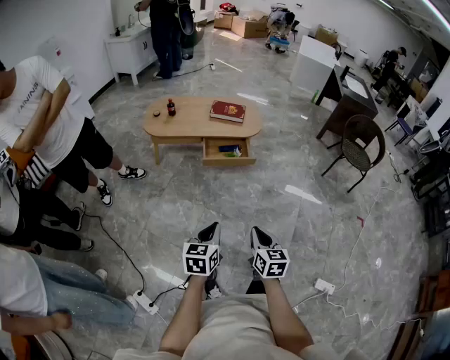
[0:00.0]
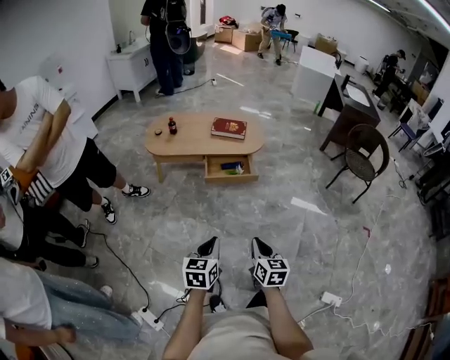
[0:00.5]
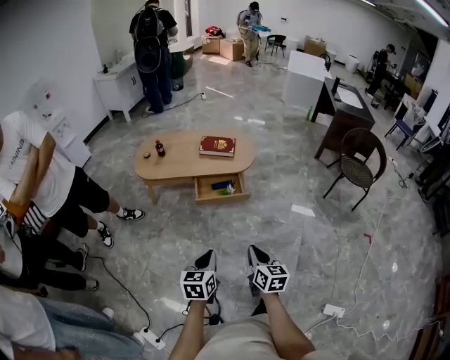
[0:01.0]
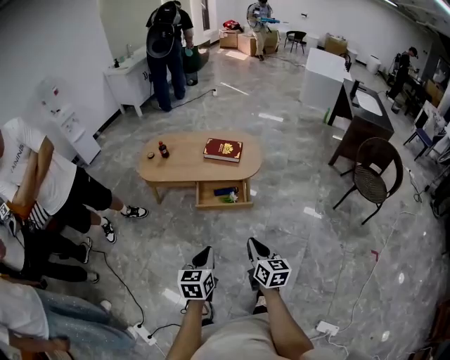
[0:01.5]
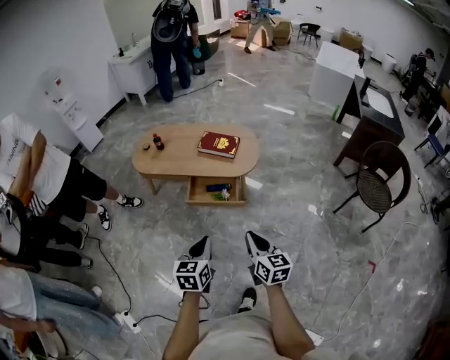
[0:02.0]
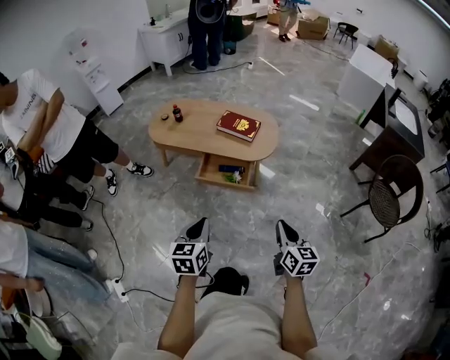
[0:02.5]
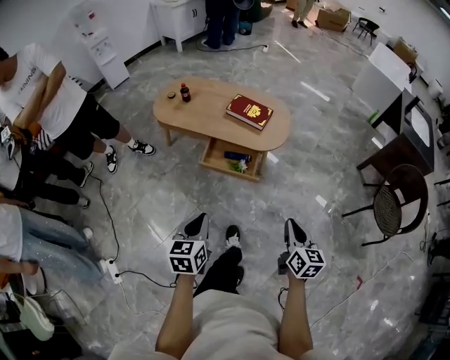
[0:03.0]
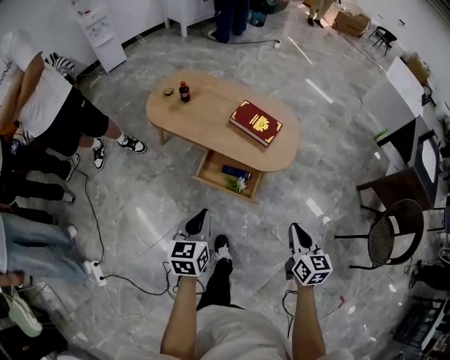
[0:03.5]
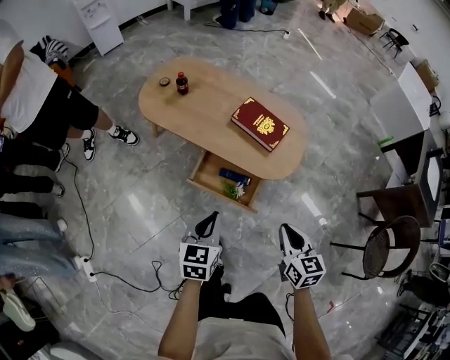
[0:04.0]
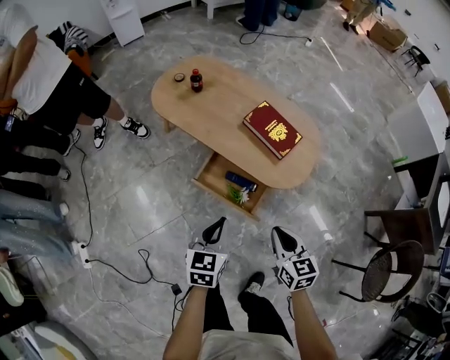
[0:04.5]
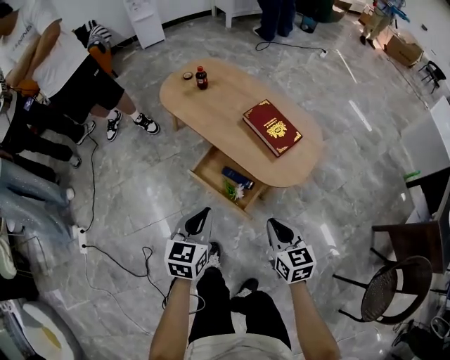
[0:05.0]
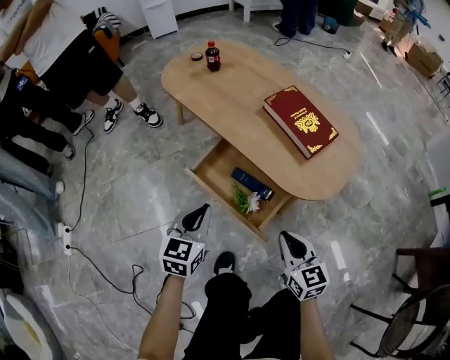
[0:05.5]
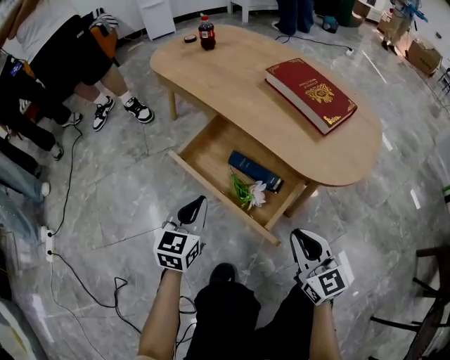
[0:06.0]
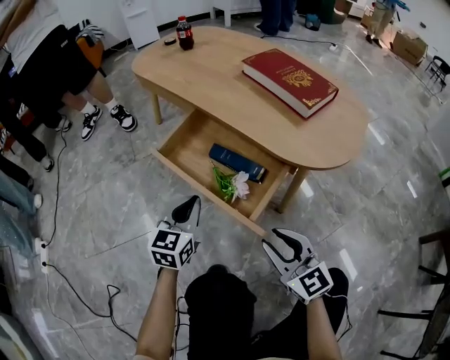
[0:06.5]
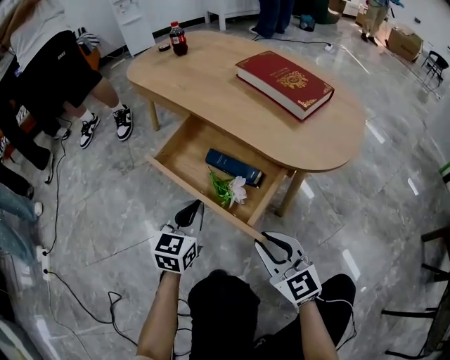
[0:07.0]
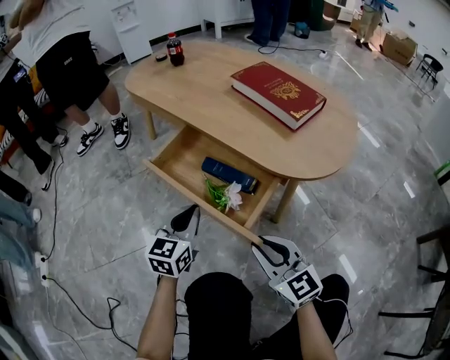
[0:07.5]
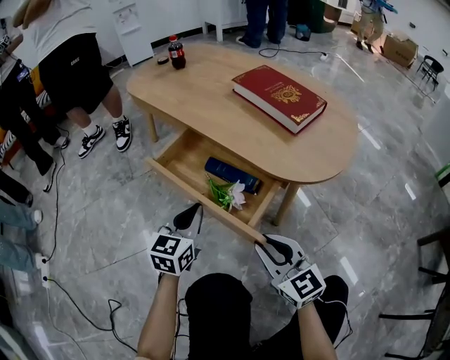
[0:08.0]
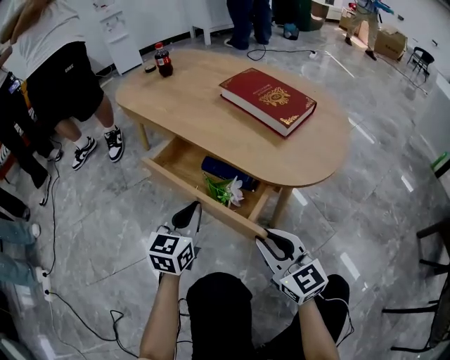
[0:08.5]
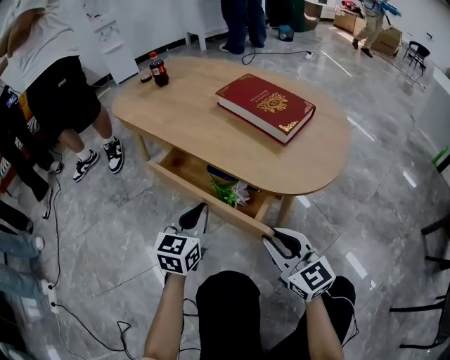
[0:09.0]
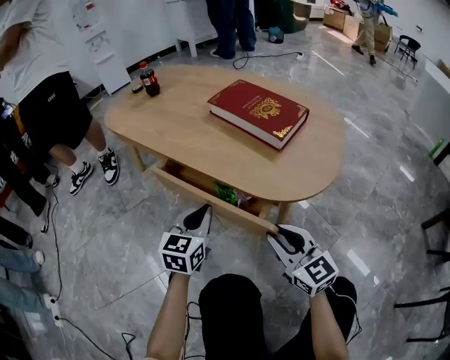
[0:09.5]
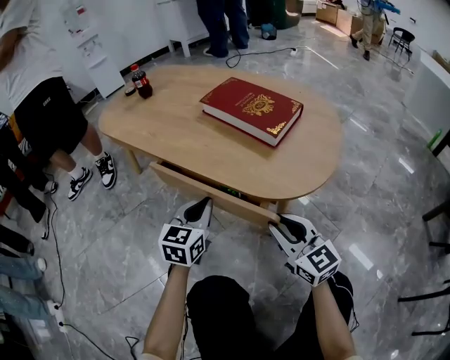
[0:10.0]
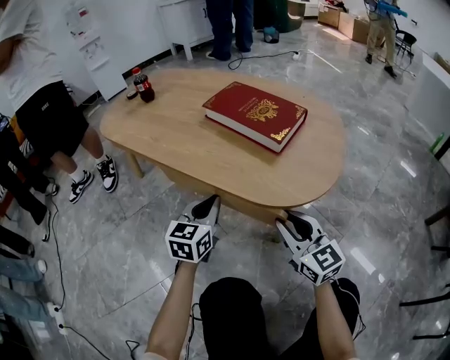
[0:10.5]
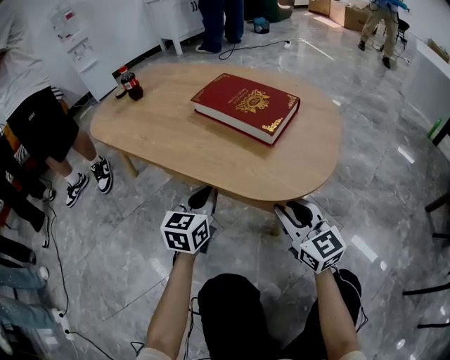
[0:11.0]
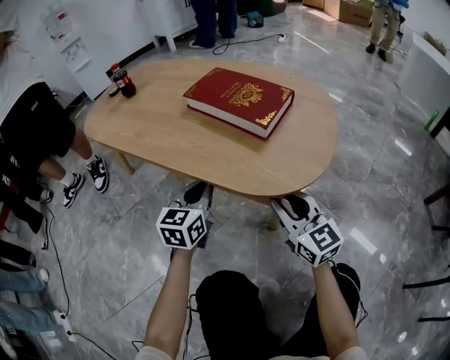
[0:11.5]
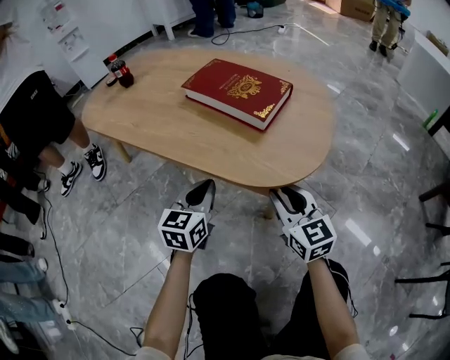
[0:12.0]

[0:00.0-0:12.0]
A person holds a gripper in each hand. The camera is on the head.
0:00.0 to 0:02.0: The grippers both shift forward and to the right by about 35 cm. The right gripper changes its angle by some 20 degrees.
0:02.0 to 0:04.0: The left gripper shifts approximately 30 cm forward and downward, while the right gripper goes some 30 cm forward, and swivels approximately 30 degrees.
0:04.0 to 0:06.0: The two grippers go roughly 40 cm downward. The right gripper rotates about 40 degrees. The left gripper turns by approximately 20 degrees.
0:08.0 to 0:10.0: Both grippers travel together forward and to the right, approximately 15 cm.
0:10.0 to 0:12.0: The right gripper shifts by approximately 5 cm.

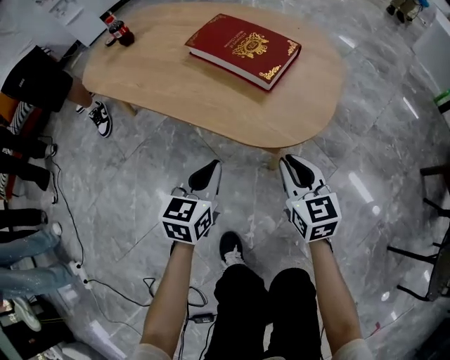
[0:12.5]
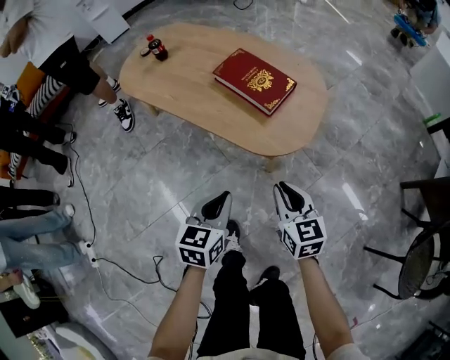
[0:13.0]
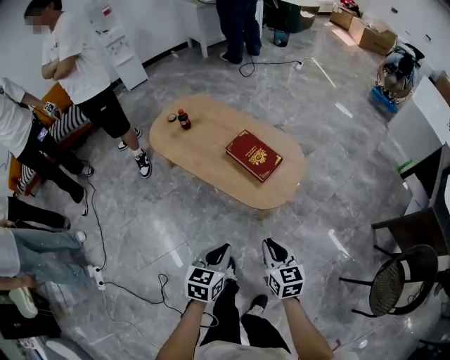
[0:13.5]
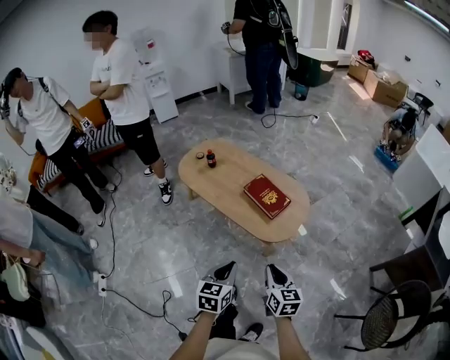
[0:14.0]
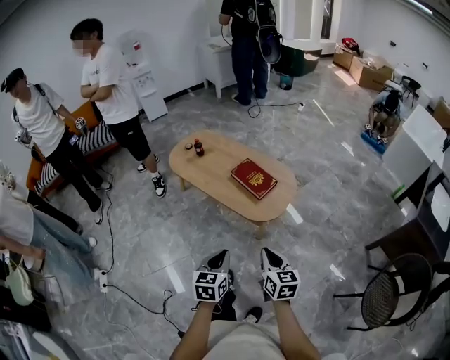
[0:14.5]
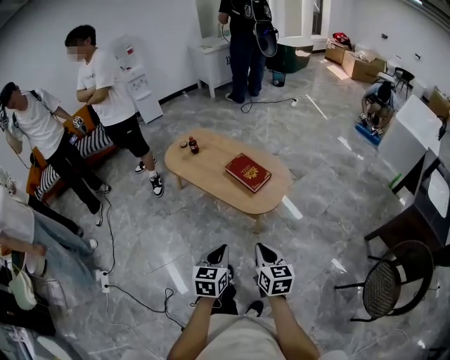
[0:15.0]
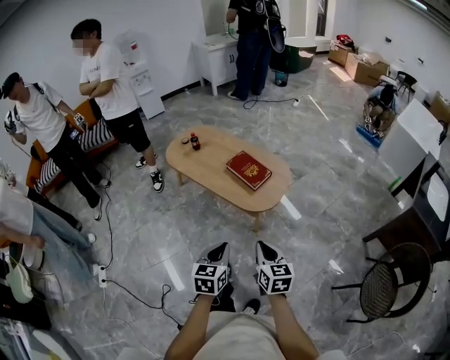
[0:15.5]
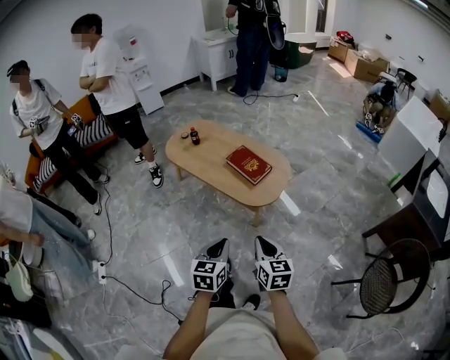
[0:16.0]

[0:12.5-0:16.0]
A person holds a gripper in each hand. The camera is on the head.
0:12.5 to 0:14.5: The grippers both shift upward and backward by some 50 cm.
0:14.5 to 0:16.0: The grippers stay close to where they were, moving slightly.

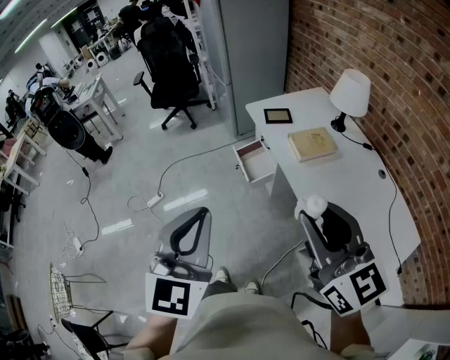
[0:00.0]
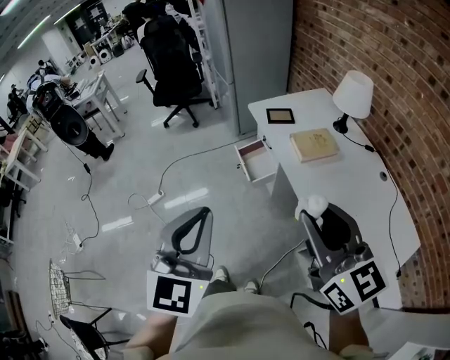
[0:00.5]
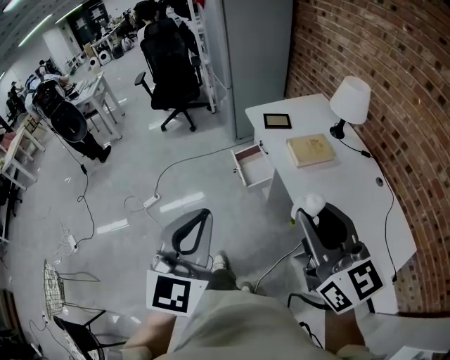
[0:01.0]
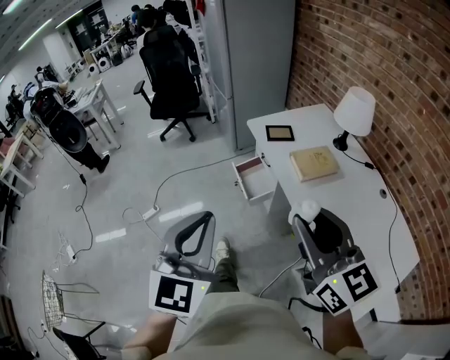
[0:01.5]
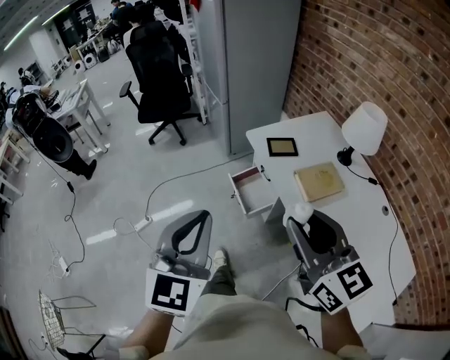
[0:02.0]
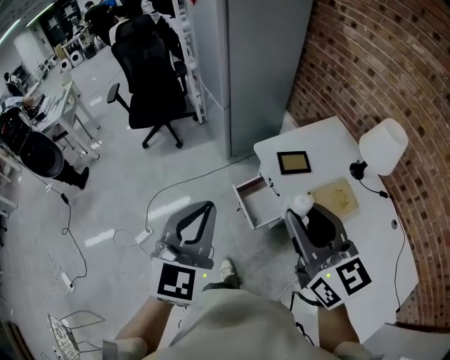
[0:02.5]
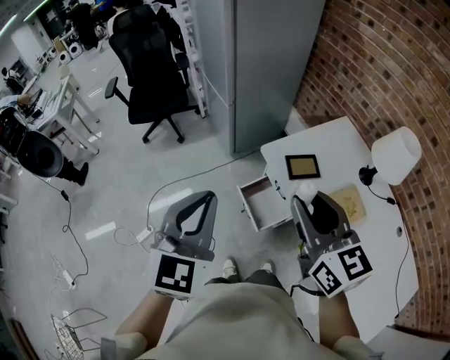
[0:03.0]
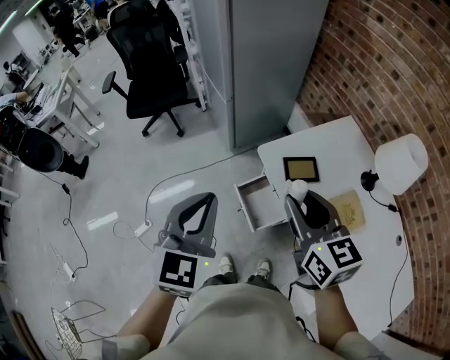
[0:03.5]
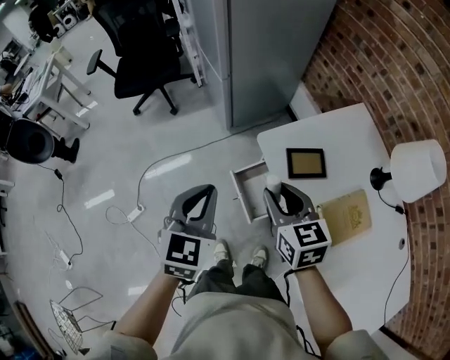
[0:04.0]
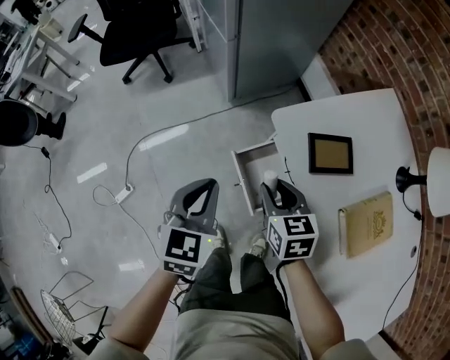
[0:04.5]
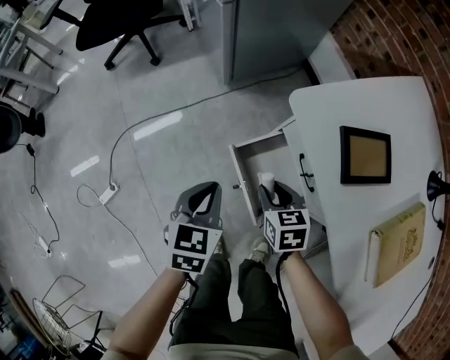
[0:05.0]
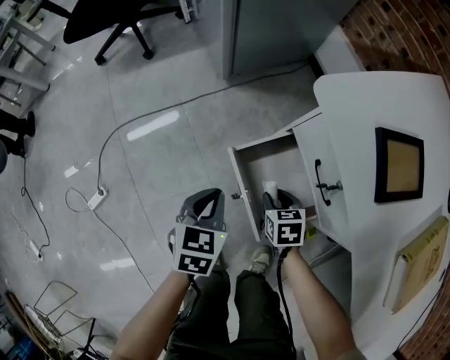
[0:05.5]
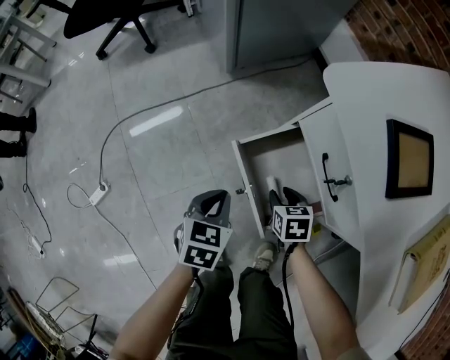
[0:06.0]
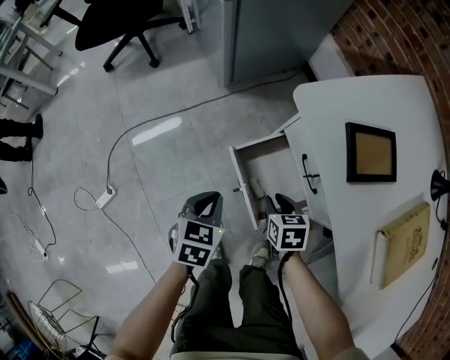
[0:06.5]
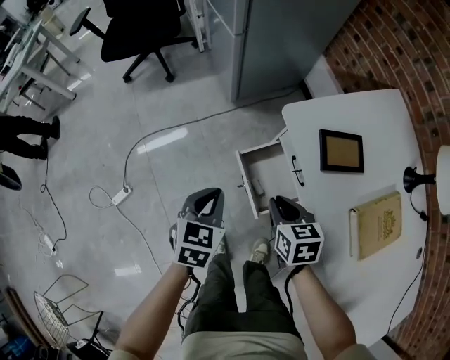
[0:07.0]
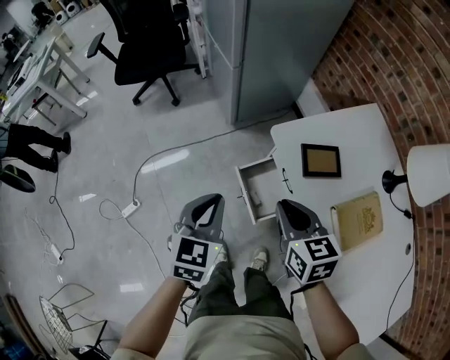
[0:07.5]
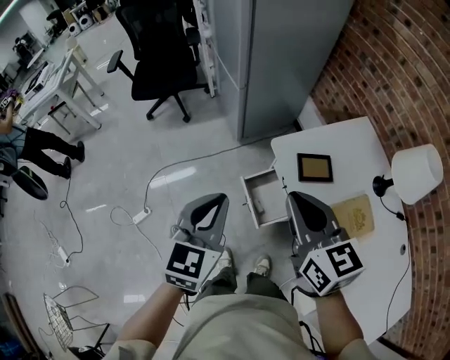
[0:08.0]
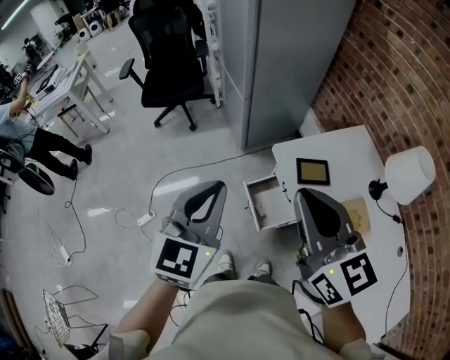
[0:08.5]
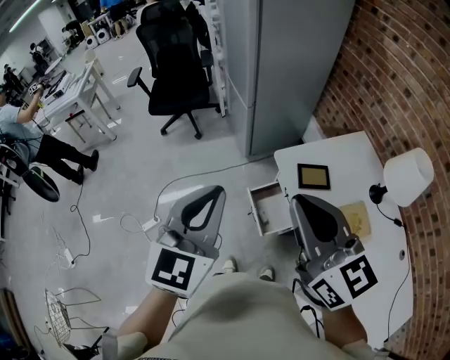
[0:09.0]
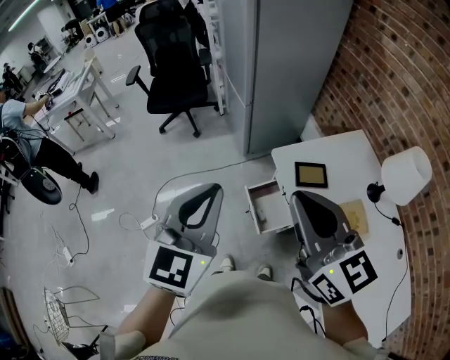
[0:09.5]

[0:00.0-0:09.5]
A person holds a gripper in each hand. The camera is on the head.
0:00.0 to 0:02.0: Both grippers travel together forward, some 20 cm.
0:02.0 to 0:04.0: The grippers both shift forward and downward by approximately 40 cm. The right gripper swivels some 30 degrees.
0:04.0 to 0:05.5: The two grippers go approximately 50 cm downward. The left gripper rotates about 20 degrees. Meanwhile the right gripper tilts its fingers roughly 30 degrees downward.
0:05.5 to 0:07.5: Both grippers move upward, roughly 40 cm. The right gripper turns by some 30 degrees, and closes up.
0:07.5 to 0:09.5: The two grippers go roughly 30 cm upward. The left gripper changes its angle by roughly 20 degrees; the right gripper tilts its fingers some 30 degrees upward.

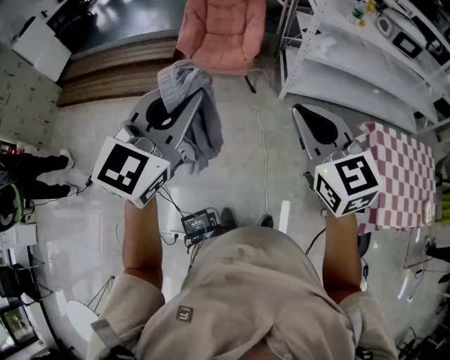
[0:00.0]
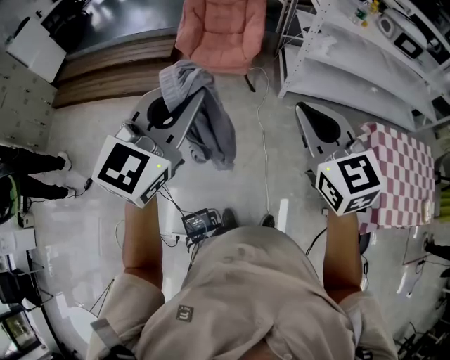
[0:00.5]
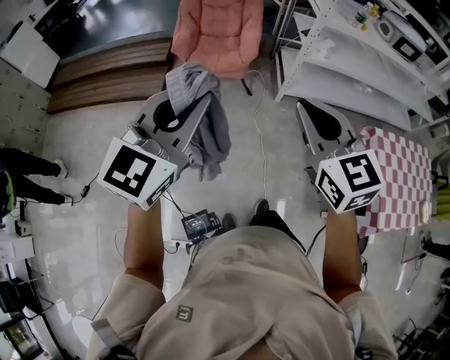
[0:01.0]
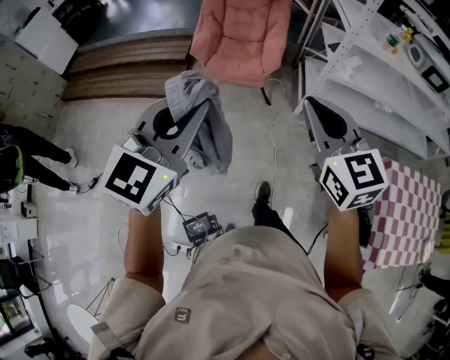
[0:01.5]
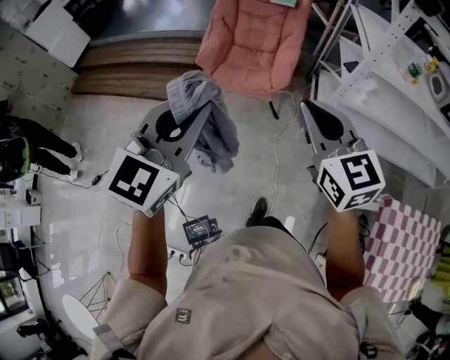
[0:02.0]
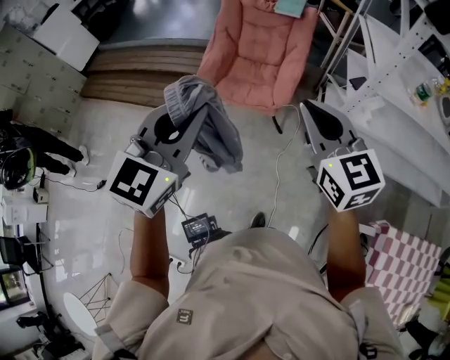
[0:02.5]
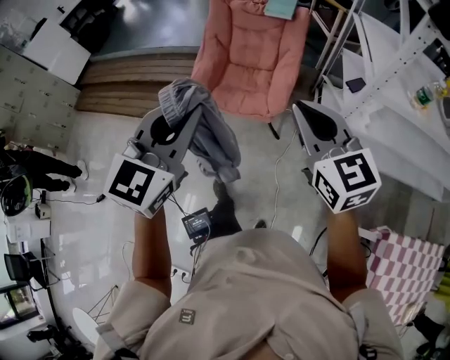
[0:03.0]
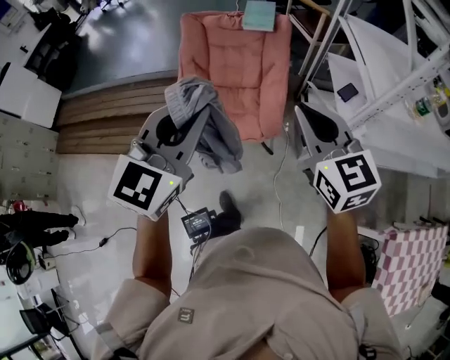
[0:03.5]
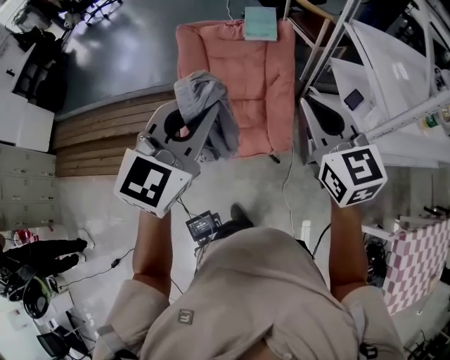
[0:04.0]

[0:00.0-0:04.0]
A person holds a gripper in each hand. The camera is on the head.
0:00.0 to 0:02.0: The two grippers go roughly 35 cm forward.
0:02.0 to 0:04.0: Both grippers are carried forward, approximately 50 cm.
